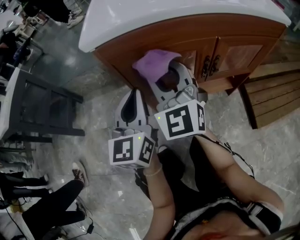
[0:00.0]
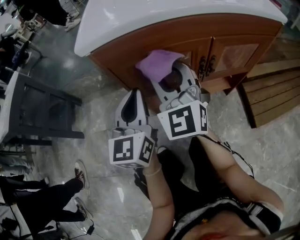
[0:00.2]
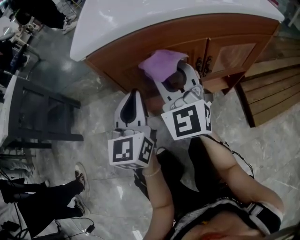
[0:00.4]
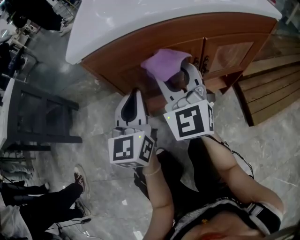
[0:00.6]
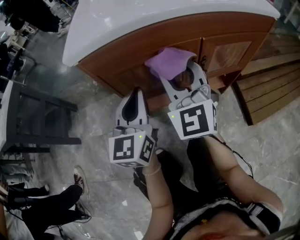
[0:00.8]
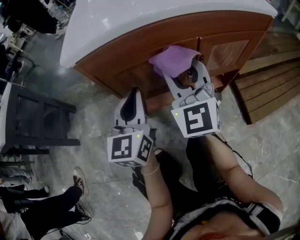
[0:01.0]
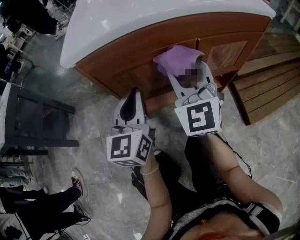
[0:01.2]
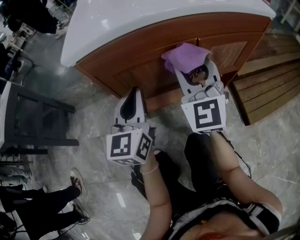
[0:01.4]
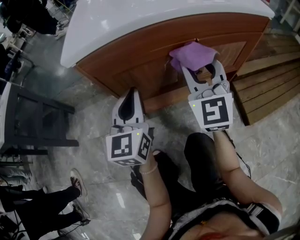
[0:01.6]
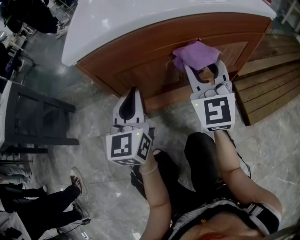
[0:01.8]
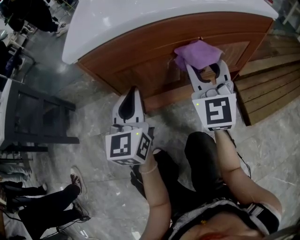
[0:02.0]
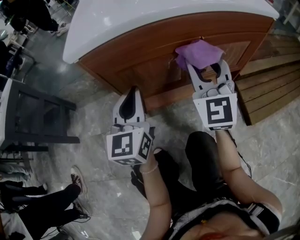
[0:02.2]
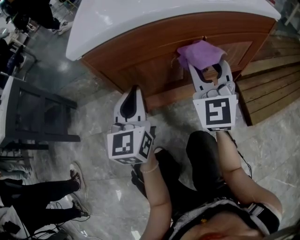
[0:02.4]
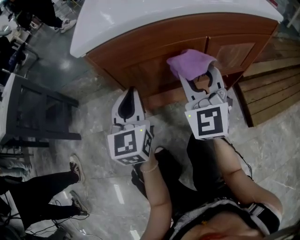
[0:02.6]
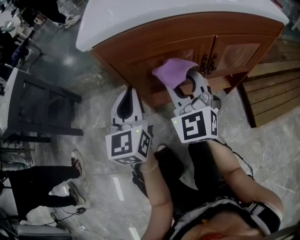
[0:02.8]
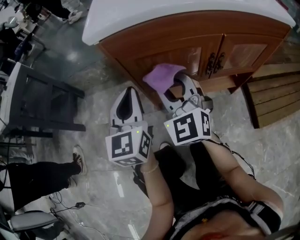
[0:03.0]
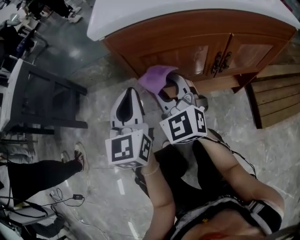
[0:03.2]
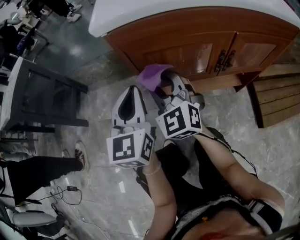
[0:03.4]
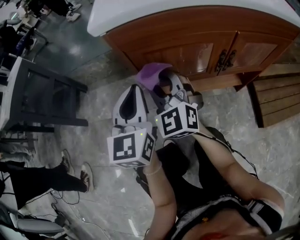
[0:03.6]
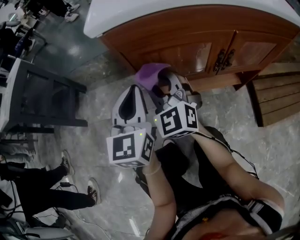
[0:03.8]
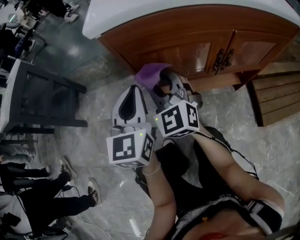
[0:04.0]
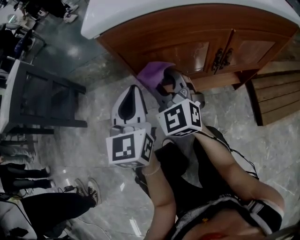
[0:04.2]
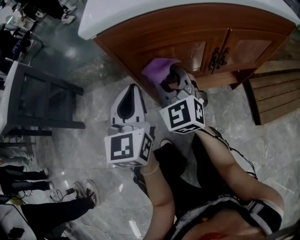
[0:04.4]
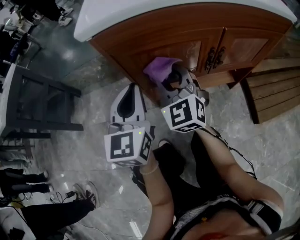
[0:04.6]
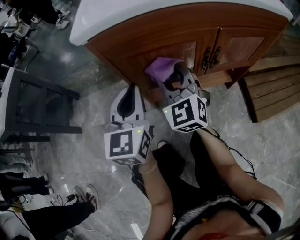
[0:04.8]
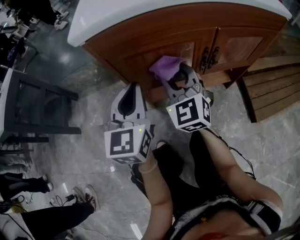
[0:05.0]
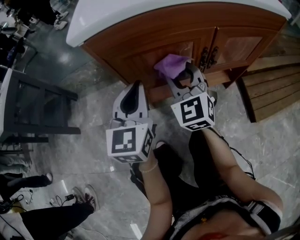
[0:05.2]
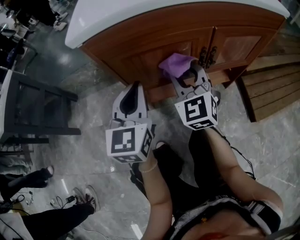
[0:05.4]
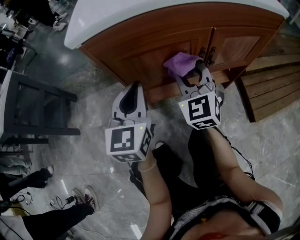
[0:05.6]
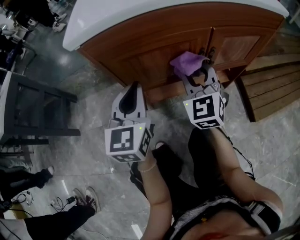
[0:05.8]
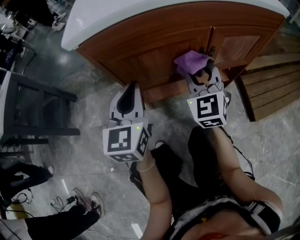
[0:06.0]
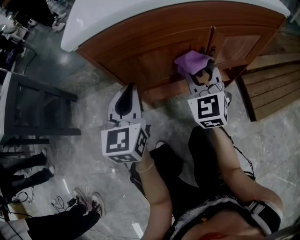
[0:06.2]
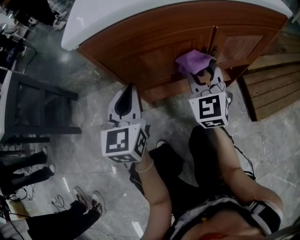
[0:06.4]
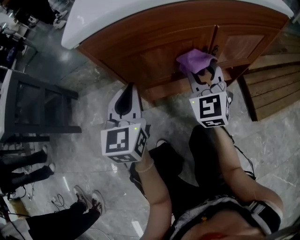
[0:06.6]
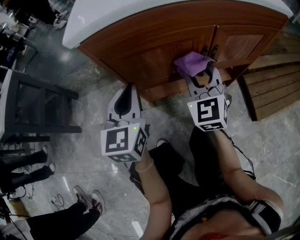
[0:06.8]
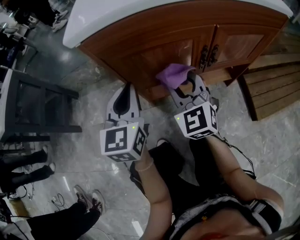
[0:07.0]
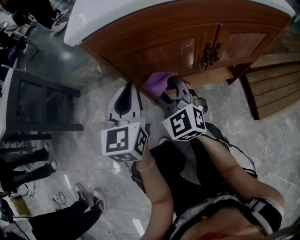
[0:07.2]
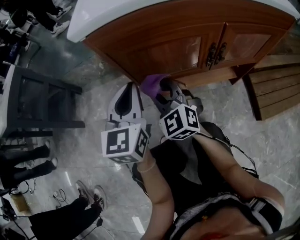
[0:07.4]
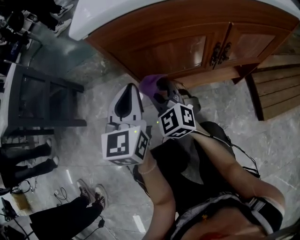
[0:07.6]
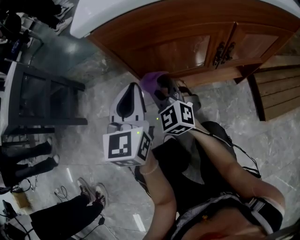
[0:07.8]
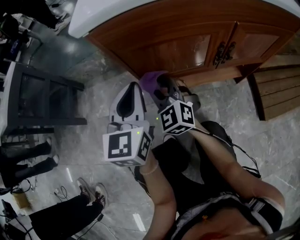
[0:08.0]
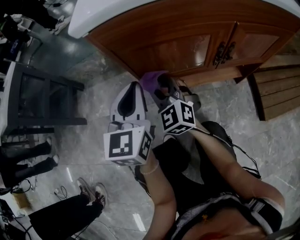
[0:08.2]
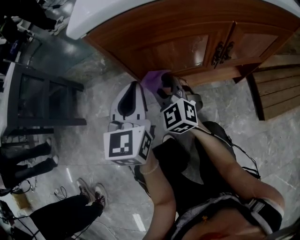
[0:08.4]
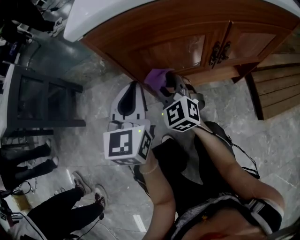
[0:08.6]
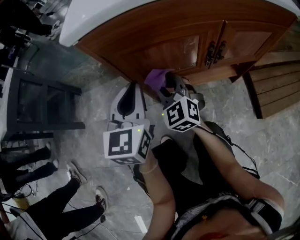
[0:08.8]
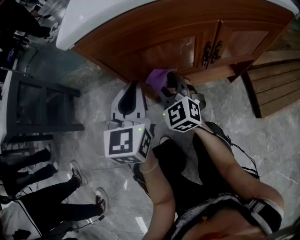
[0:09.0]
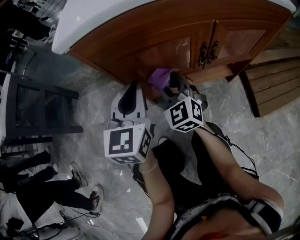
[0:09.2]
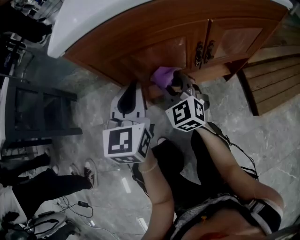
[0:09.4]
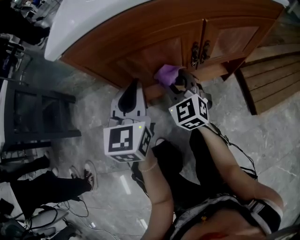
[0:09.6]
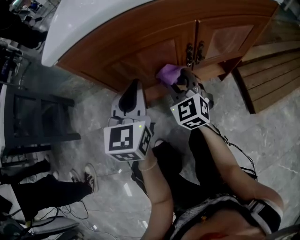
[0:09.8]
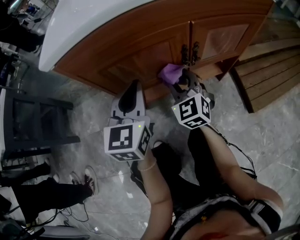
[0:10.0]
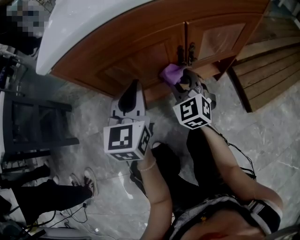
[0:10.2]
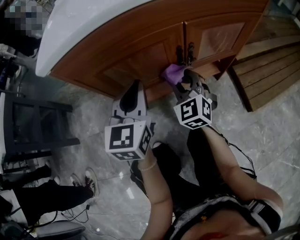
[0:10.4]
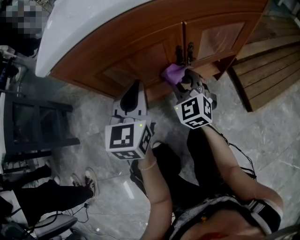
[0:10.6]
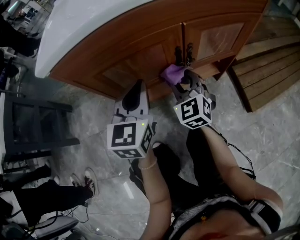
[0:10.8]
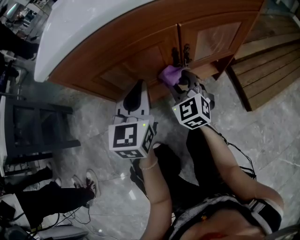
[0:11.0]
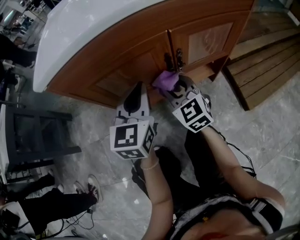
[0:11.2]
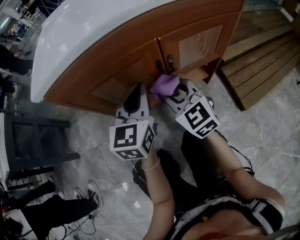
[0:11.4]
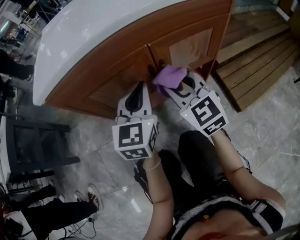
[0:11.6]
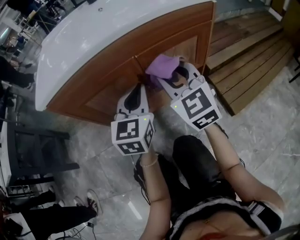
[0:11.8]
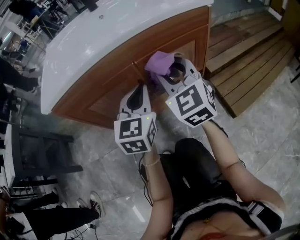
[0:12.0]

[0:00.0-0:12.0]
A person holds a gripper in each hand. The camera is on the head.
0:00.0 to 0:01.6: The right gripper goes about 15 cm to the right.
0:01.6 to 0:03.0: The right gripper heads to the left, covering some 15 cm; the left gripper goes roughly 5 cm to the left.
0:03.0 to 0:04.4: The right gripper moves approximately 5 cm.
0:04.4 to 0:06.0: The right gripper travels to the right by roughly 15 cm.
0:06.0 to 0:07.6: The left gripper changes place by some 5 cm, while the right gripper goes about 20 cm to the left, and turns by about 30 degrees.
0:07.6 to 0:09.0: The right gripper heads to the right, covering roughly 5 cm.
0:09.0 to 0:10.4: The left gripper goes roughly 10 cm to the right, while the right gripper is displaced to the right by approximately 15 cm.
0:10.4 to 0:12.0: The right gripper travels upward and to the right by some 20 cm. The left gripper travels to the right by roughly 15 cm.

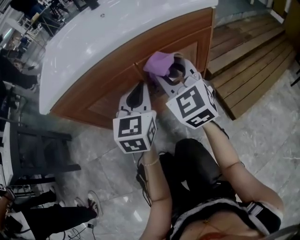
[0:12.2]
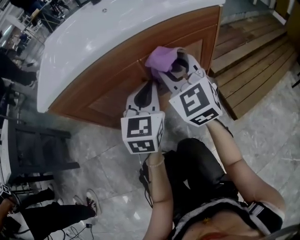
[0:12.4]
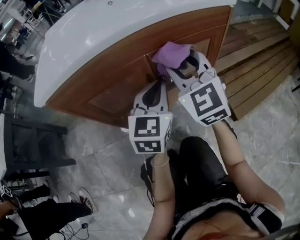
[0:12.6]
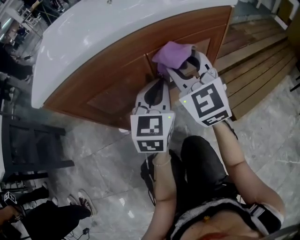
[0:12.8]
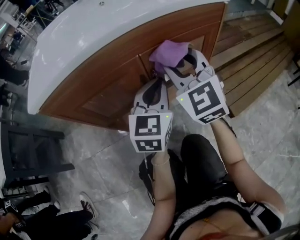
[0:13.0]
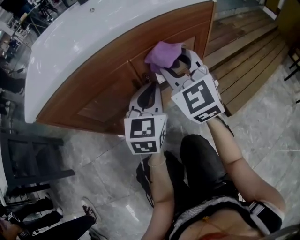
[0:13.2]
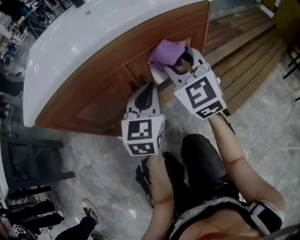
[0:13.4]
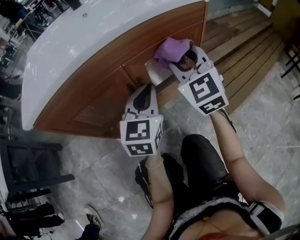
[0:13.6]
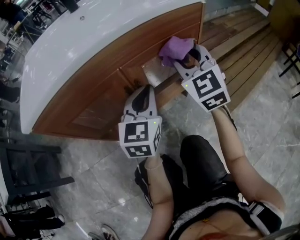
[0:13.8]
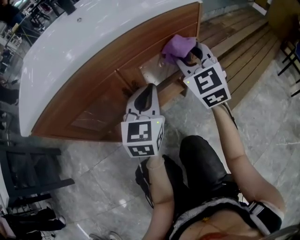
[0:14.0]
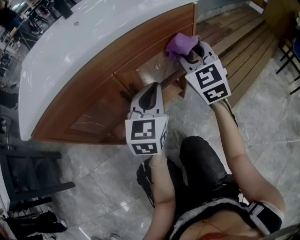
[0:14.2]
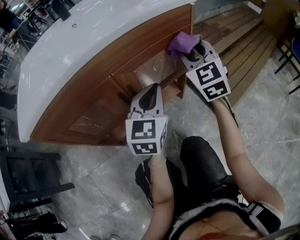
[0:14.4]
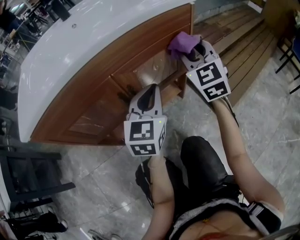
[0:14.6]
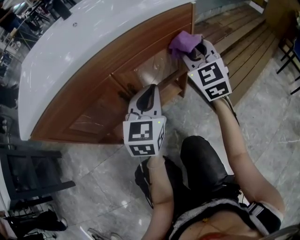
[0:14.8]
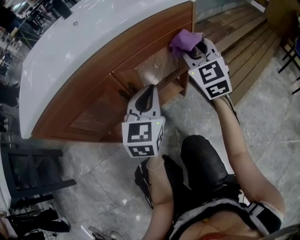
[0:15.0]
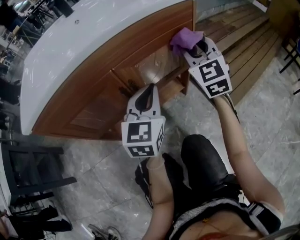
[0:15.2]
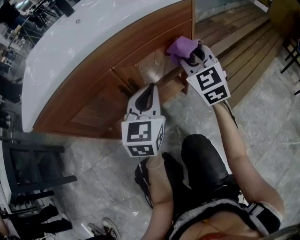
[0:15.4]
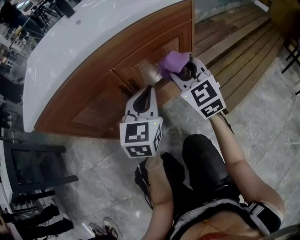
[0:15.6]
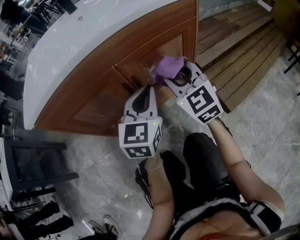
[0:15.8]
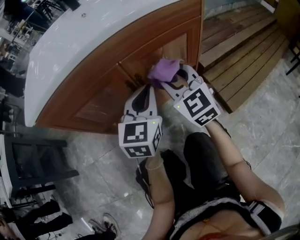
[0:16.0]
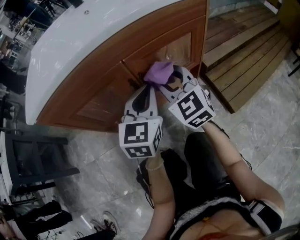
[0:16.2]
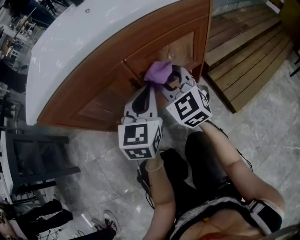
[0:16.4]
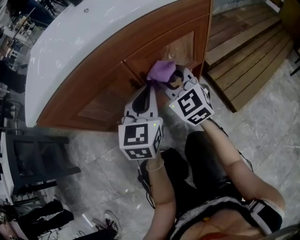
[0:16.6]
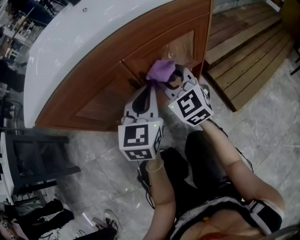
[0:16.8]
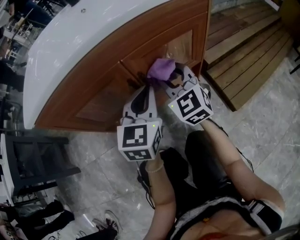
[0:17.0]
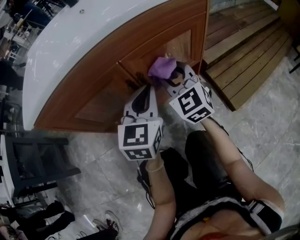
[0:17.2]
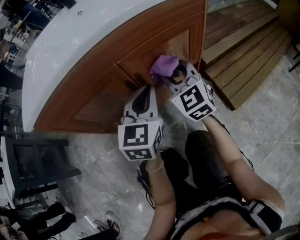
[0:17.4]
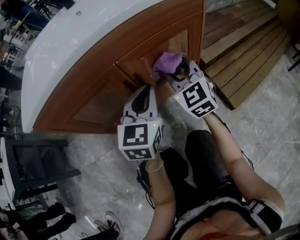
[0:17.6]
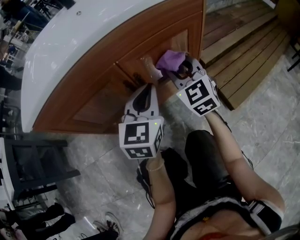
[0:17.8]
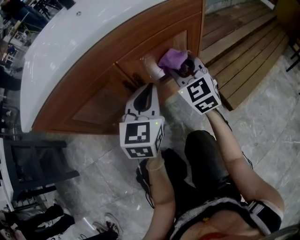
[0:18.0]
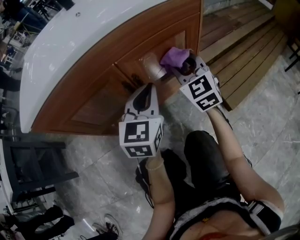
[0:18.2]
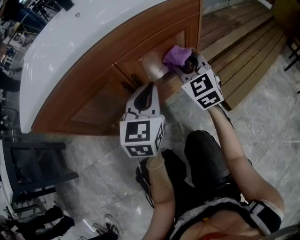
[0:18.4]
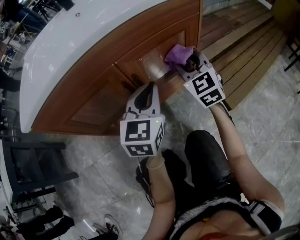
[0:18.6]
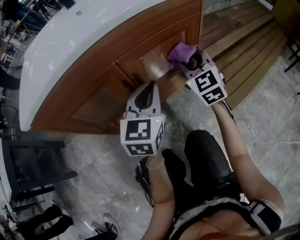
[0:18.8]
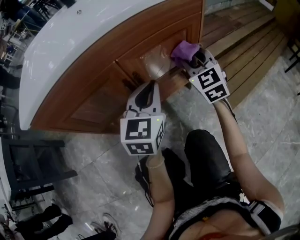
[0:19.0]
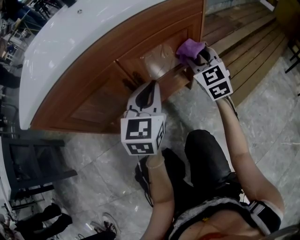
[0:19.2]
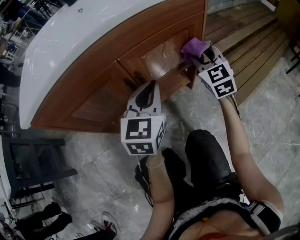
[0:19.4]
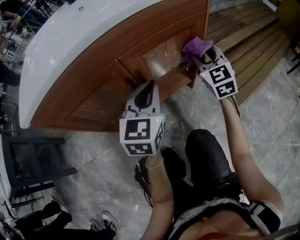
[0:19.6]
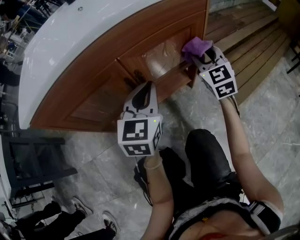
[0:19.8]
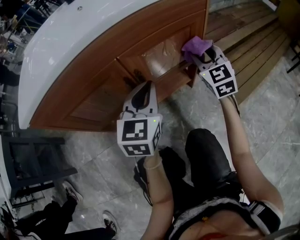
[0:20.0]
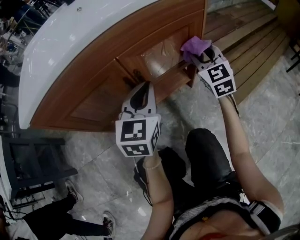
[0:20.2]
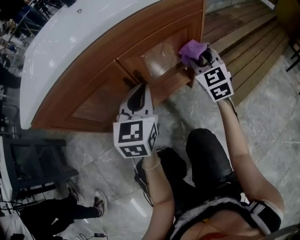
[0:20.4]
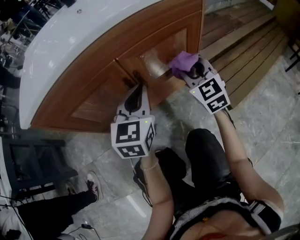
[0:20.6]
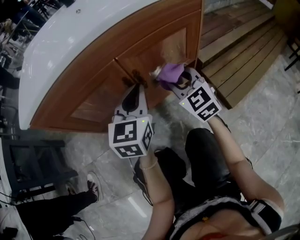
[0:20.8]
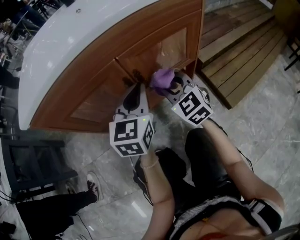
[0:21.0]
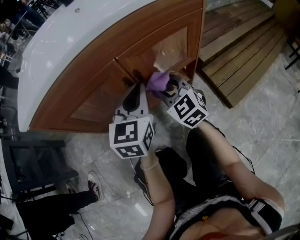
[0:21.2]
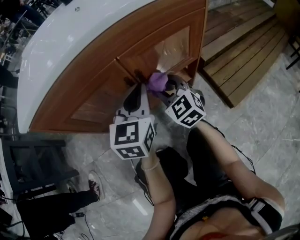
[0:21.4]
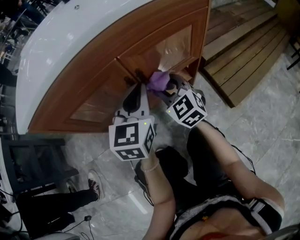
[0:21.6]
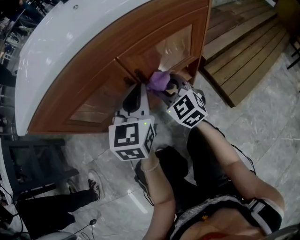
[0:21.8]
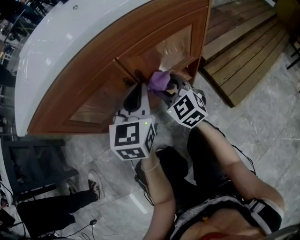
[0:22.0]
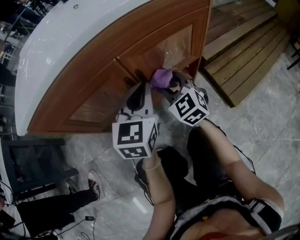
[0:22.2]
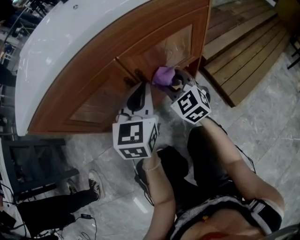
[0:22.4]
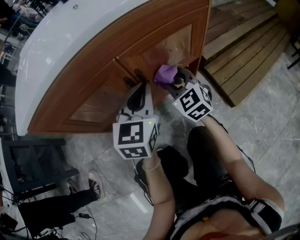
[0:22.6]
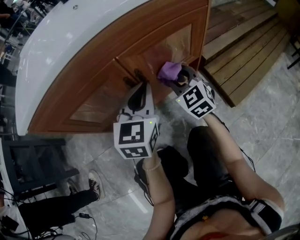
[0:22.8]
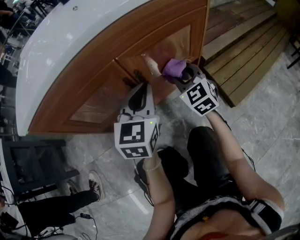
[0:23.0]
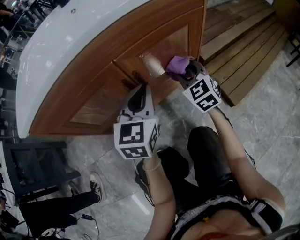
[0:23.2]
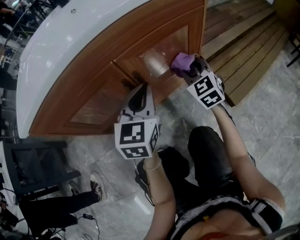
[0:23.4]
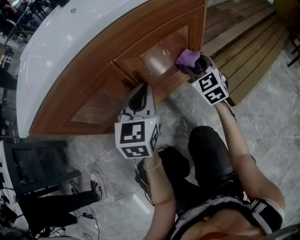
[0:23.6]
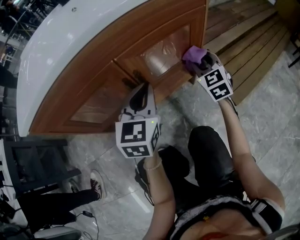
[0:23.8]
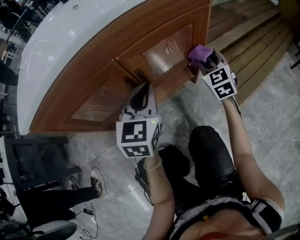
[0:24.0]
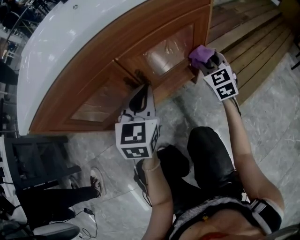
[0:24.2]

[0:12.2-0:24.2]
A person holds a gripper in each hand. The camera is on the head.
0:12.2 to 0:13.8: The left gripper heads to the right, covering approximately 5 cm. The right gripper moves to the right, some 10 cm.
0:13.8 to 0:15.2: The right gripper is displaced to the right by about 5 cm.
0:15.2 to 0:16.6: The left gripper travels to the left by about 5 cm. Meanwhile the right gripper heads to the left and downward, covering about 15 cm, and swivels about 20 degrees.
0:16.6 to 0:18.2: The right gripper travels to the right by roughly 10 cm.
0:18.2 to 0:19.8: The right gripper is displaced to the right by about 5 cm.
0:19.8 to 0:21.2: The right gripper is displaced to the left and backward by about 20 cm.
0:21.2 to 0:22.6: There are only small adjustments of the grippers.
0:22.6 to 0:24.2: The right gripper goes some 15 cm to the right and forward.
